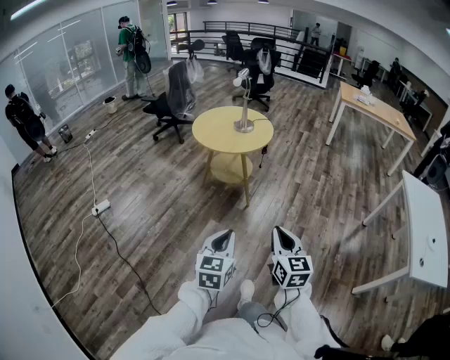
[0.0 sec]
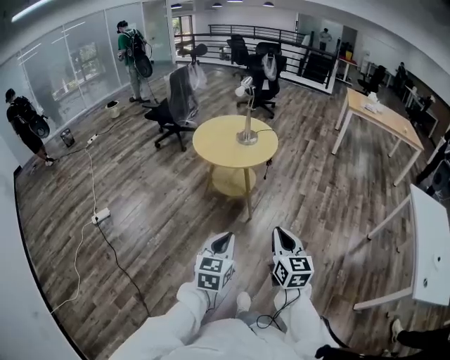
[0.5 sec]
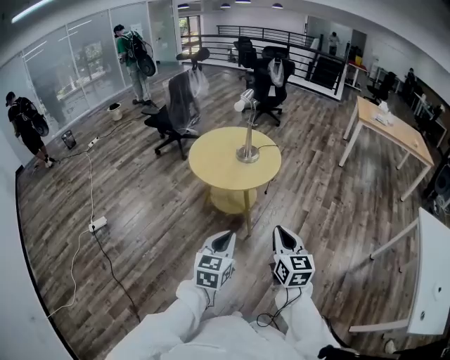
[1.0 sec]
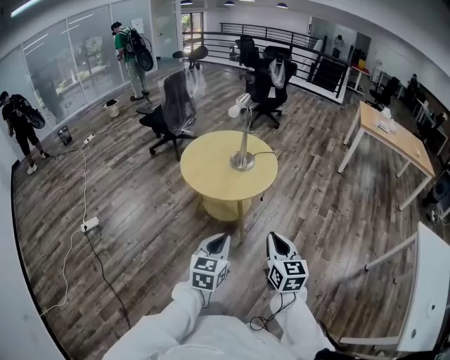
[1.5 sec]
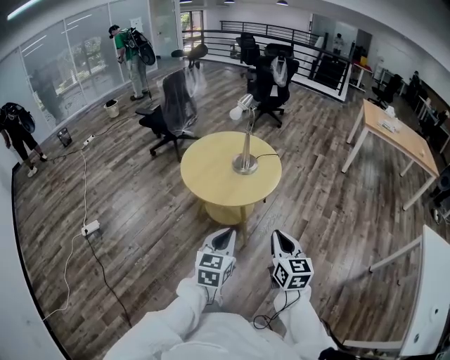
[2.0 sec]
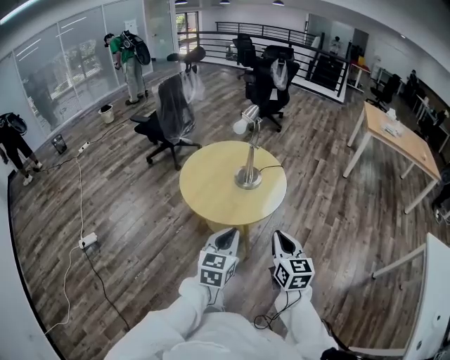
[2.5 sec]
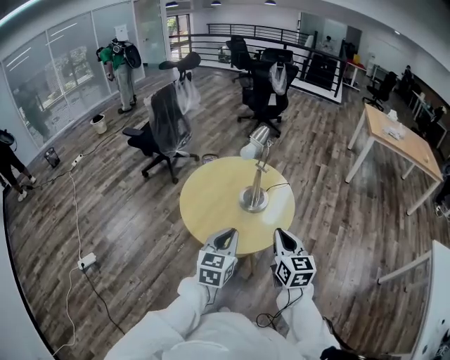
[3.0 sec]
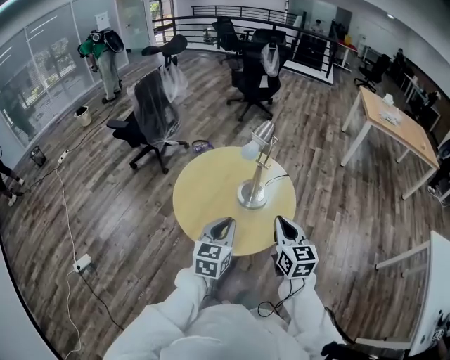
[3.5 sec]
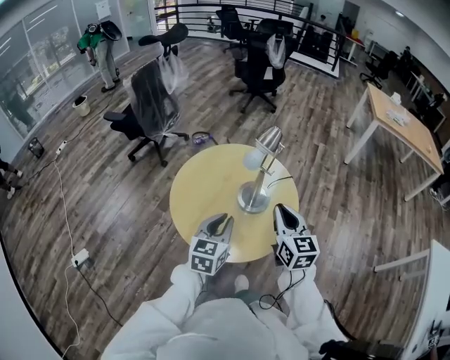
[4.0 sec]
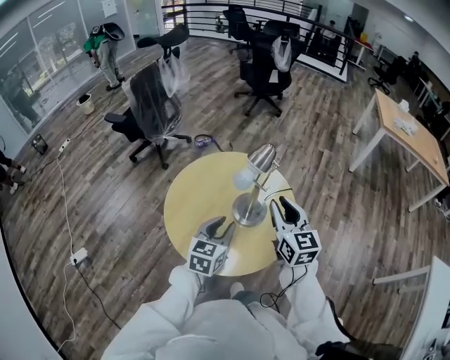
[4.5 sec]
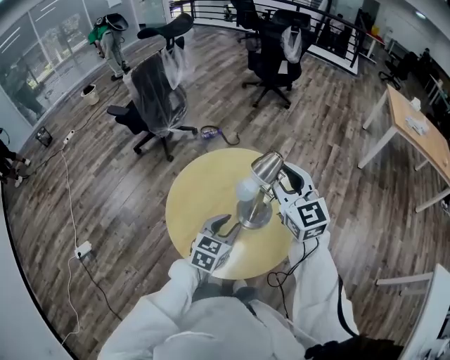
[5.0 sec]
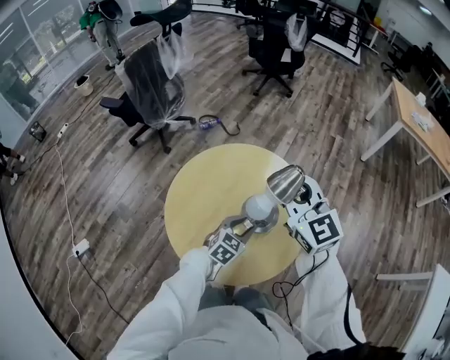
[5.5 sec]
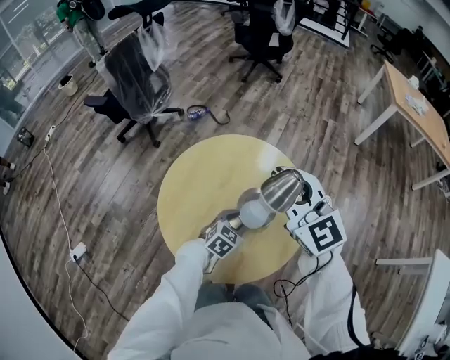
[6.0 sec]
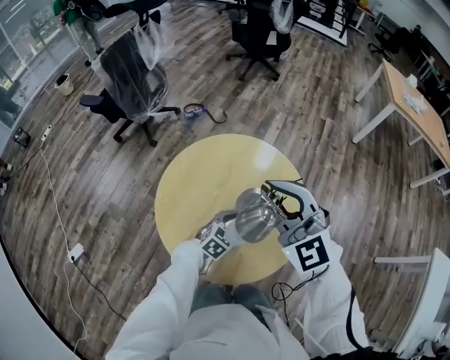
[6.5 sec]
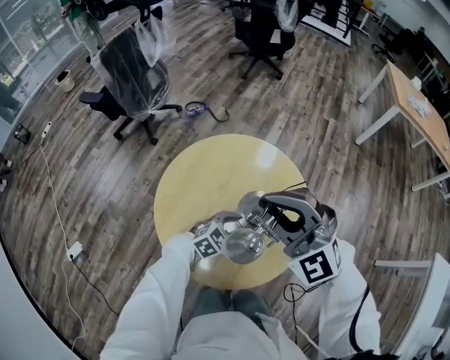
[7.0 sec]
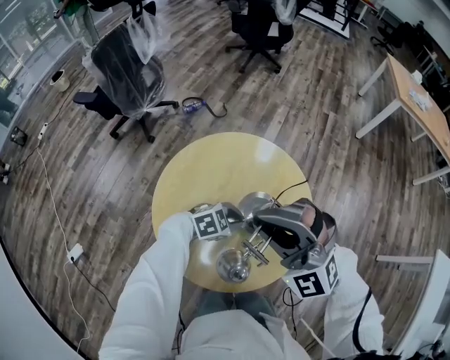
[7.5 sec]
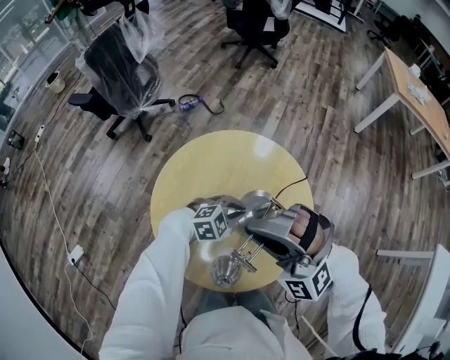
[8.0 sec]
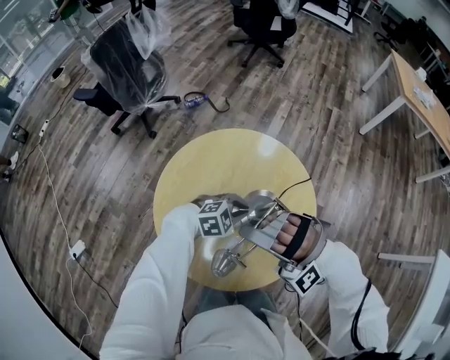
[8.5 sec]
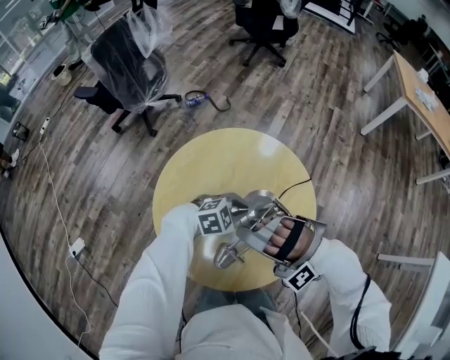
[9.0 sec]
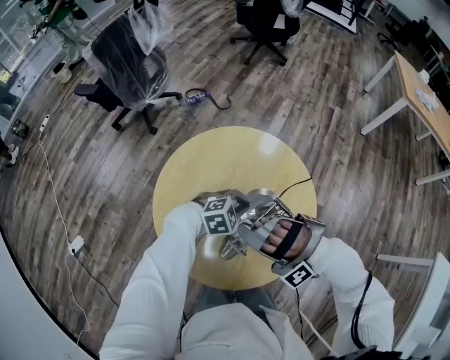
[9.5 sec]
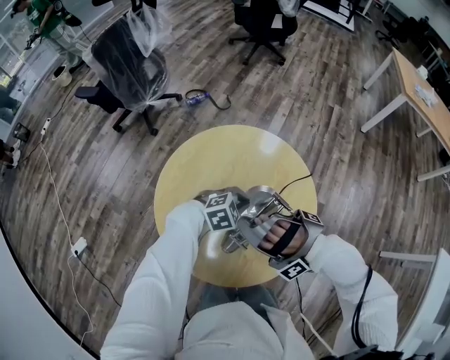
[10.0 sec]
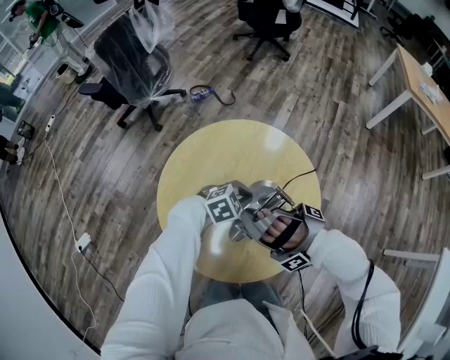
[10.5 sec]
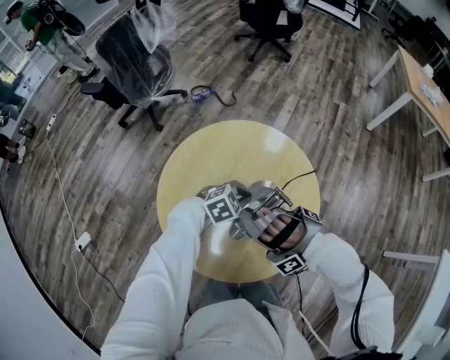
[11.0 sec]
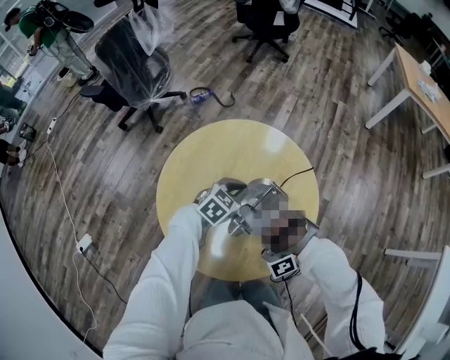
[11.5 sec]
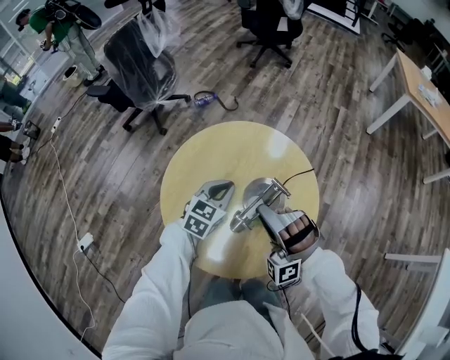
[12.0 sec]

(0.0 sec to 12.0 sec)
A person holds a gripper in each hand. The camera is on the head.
0.0 sec - 2.0 sec: Both grippers are carried forward, roughly 40 cm.
2.0 sec - 4.0 sec: The two grippers travel together, forward, approximately 40 cm.
4.0 sec - 6.0 sec: The right gripper goes approximately 20 cm forward and upward, and swivels approximately 30 degrees. Meanwhile the left gripper travels downward and forward by some 25 cm, turns by about 30 degrees, and opens its fingers.
6.0 sec - 8.0 sec: The left gripper turns by roughly 40 degrees, and closes up; the right gripper shifts by about 10 cm, and rotates around the line of its fingers by about 50 degrees, counterclockwise from behind.
8.0 sec - 10.0 sec: The right gripper shifts approximately 10 cm downward, and rotates around the line of its fingers by approximately 50 degrees, counterclockwise from behind.
10.0 sec - 12.0 sec: The right gripper swivels some 40 degrees, and opens up, while the left gripper moves to the left and upward, some 10 cm, and swivels about 50 degrees.

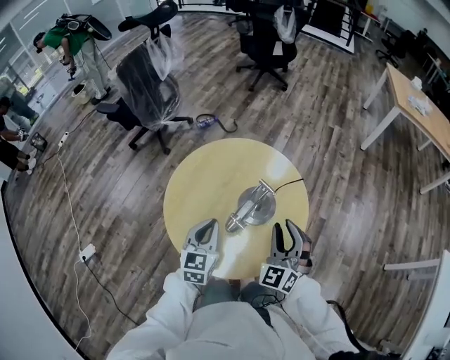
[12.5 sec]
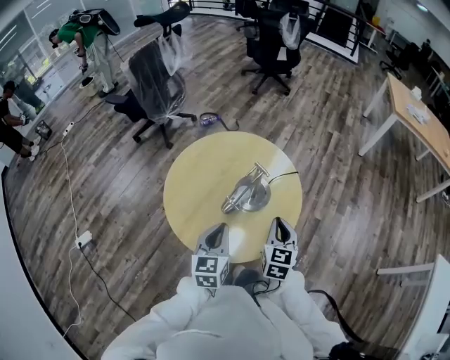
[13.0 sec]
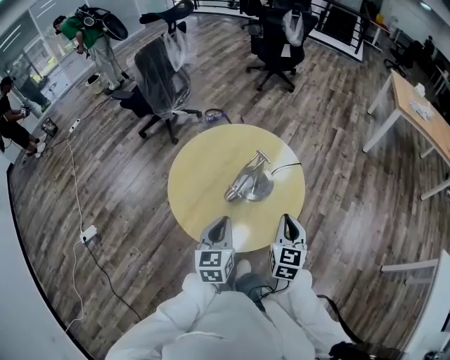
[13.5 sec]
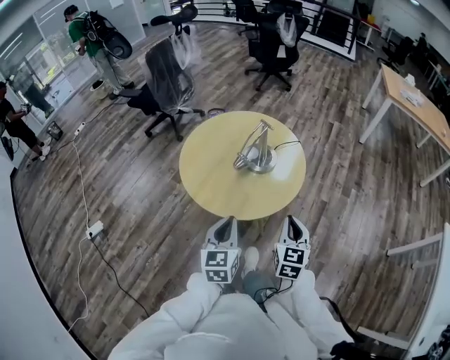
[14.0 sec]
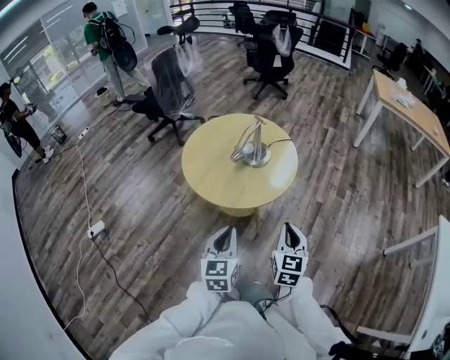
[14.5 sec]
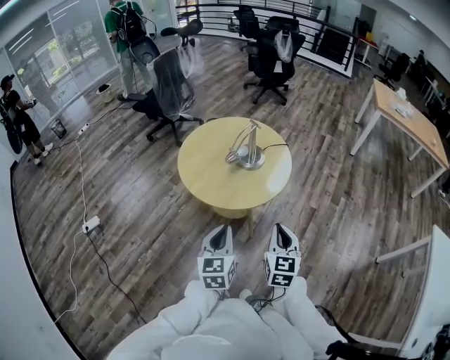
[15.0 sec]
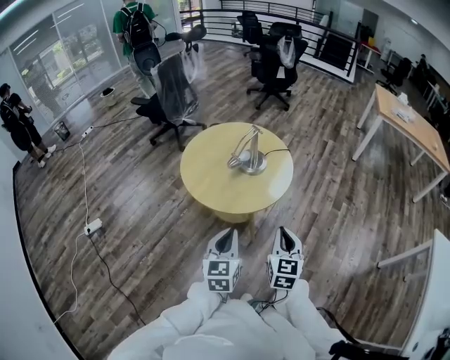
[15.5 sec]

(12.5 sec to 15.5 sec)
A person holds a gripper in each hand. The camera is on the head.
12.5 sec - 14.0 sec: The two grippers go about 25 cm backward. The right gripper swivels approximately 40 degrees, and closes.
14.0 sec - 15.5 sec: The left gripper travels backward and to the right by about 10 cm; the right gripper is displaced backward by about 10 cm.

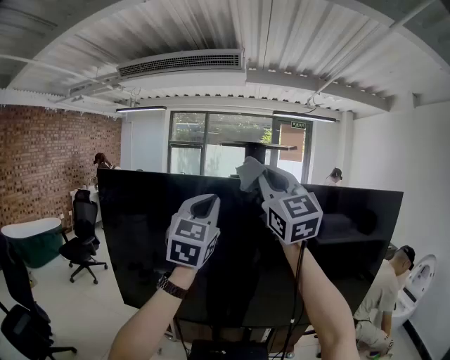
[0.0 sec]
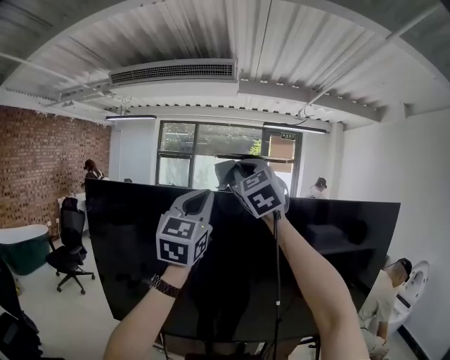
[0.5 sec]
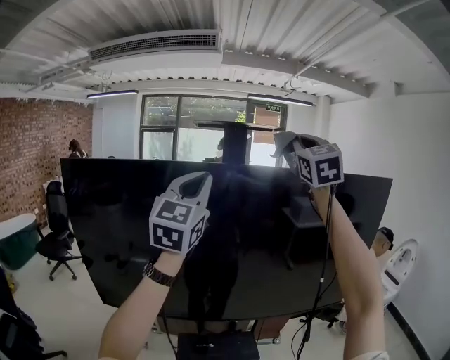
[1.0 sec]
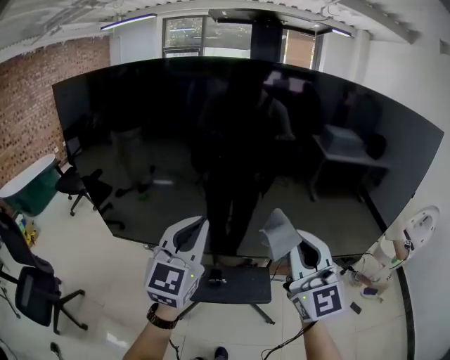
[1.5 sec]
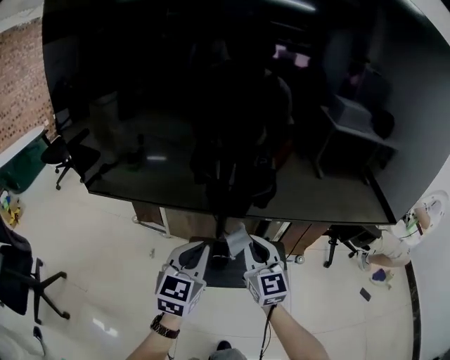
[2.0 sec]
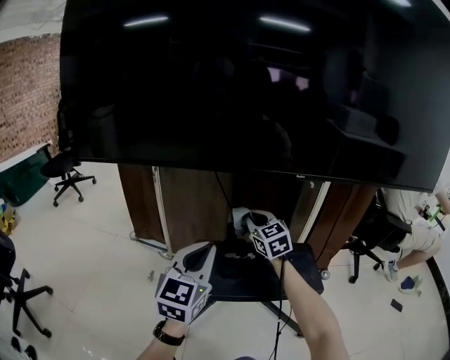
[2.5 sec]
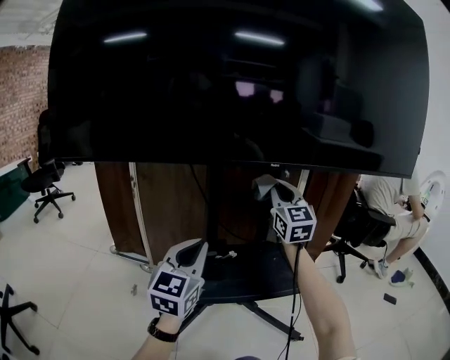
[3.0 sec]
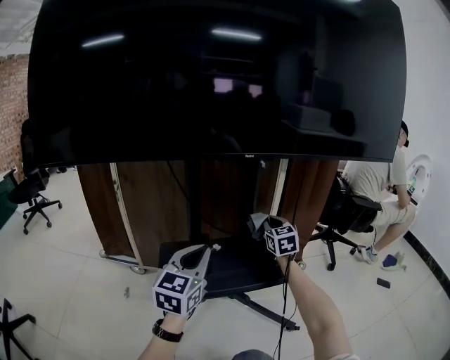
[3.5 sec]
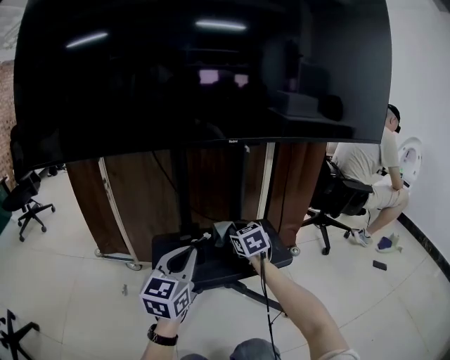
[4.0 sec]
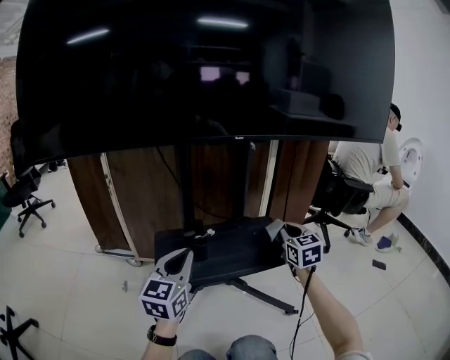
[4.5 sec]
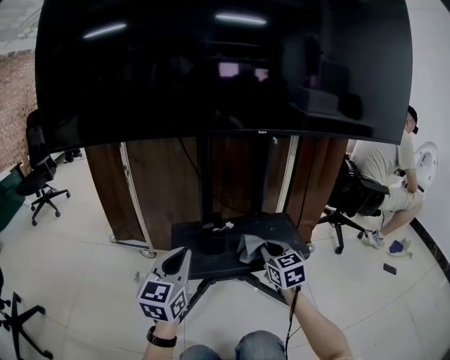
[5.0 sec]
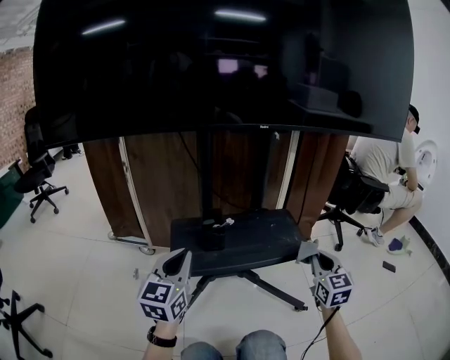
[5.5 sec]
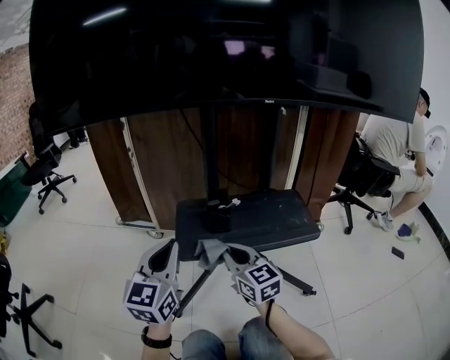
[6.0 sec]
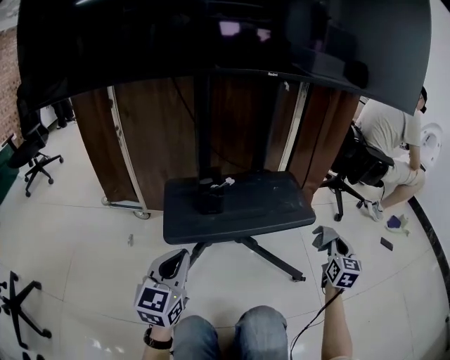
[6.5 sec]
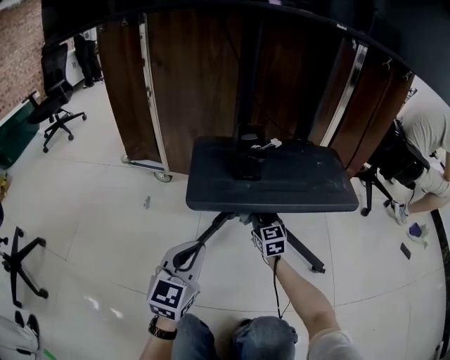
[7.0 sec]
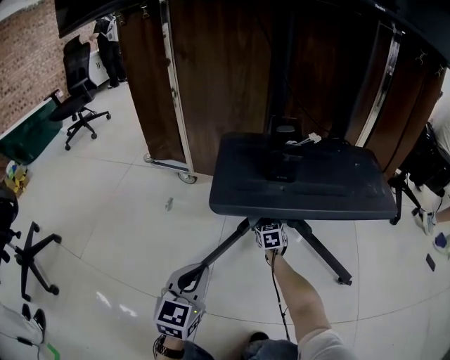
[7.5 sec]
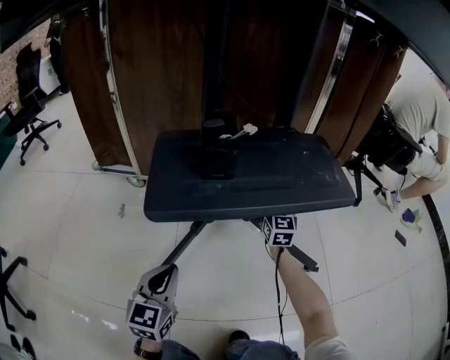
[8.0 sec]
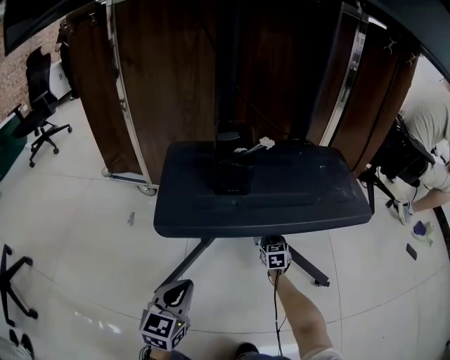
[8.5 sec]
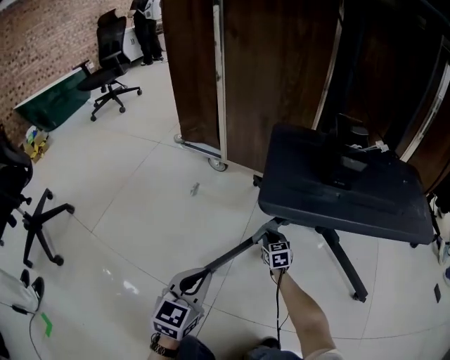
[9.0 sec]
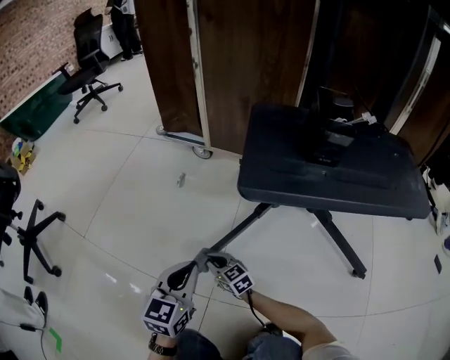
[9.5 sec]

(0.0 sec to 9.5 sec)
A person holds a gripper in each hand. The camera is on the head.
0.0 sec - 2.0 sec: The two grippers go about 70 cm downward. The right gripper swivels some 30 degrees, while the left gripper changes its angle by approximately 40 degrees.
2.0 sec - 4.0 sec: The right gripper goes up and down, about 35 cm each way, reversing 2 times, and swivels approximately 30 degrees. Meanwhile the left gripper shifts some 30 cm downward.
4.0 sec - 5.5 sec: The left gripper is displaced to the left by roughly 10 cm, while the right gripper goes left and right, some 20 cm each way, reversing 2 times, and turns by about 20 degrees.
5.5 sec - 7.5 sec: The right gripper shifts some 50 cm downward, and swivels some 30 degrees. Meanwhile the left gripper travels downward by some 30 cm.
7.5 sec - 9.5 sec: The left gripper moves roughly 10 cm. The right gripper reaches roughly 20 cm upward, then returns, and swivels about 40 degrees.

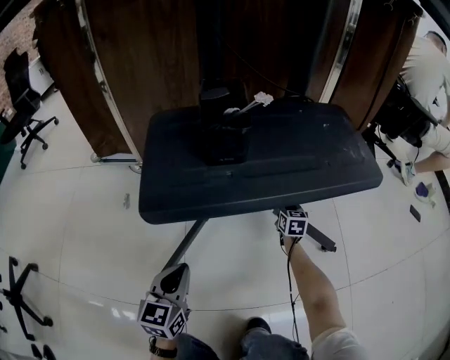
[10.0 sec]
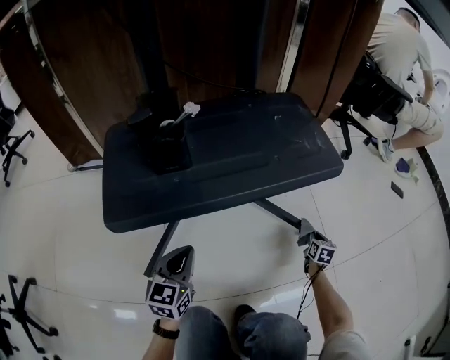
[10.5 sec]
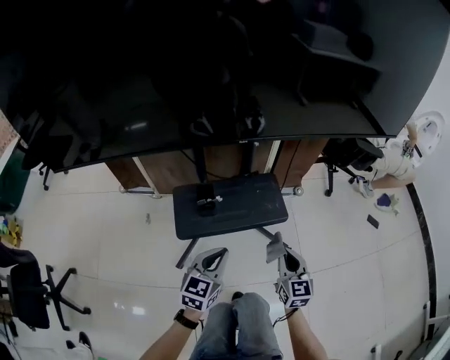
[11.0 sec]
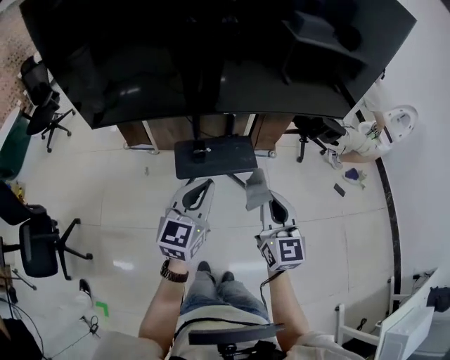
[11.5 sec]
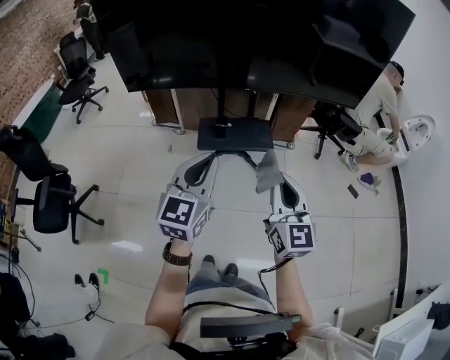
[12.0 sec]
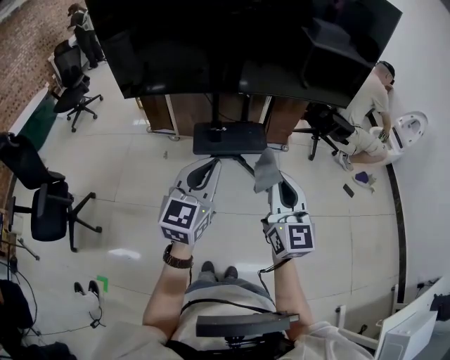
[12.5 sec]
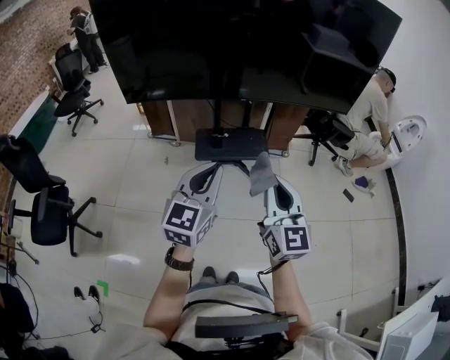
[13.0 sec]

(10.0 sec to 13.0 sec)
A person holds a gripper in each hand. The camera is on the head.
10.0 sec - 11.5 sec: The left gripper is displaced upward by about 90 cm, while the right gripper moves upward and backward, about 1 m, and rotates about 30 degrees.
11.5 sec - 13.0 sec: The right gripper moves backward and upward, roughly 20 cm; the left gripper travels backward by about 20 cm.
